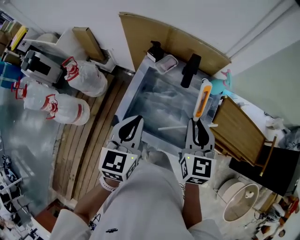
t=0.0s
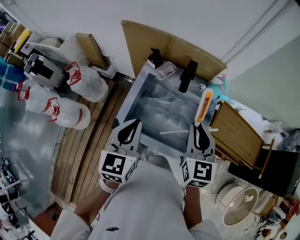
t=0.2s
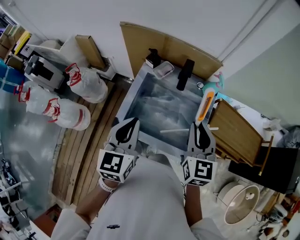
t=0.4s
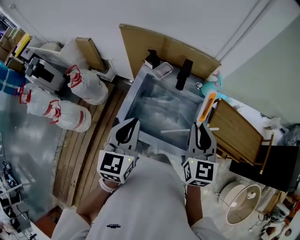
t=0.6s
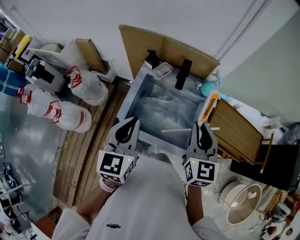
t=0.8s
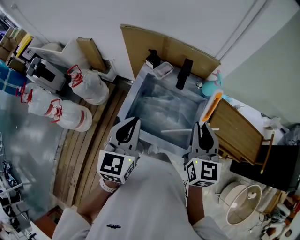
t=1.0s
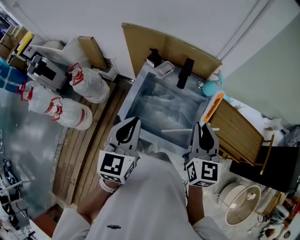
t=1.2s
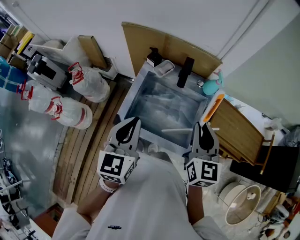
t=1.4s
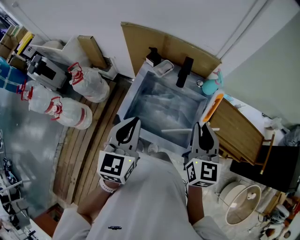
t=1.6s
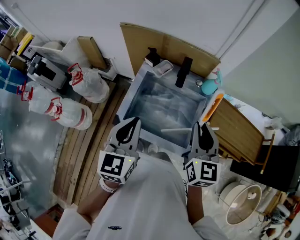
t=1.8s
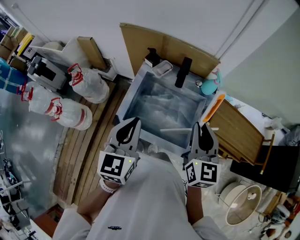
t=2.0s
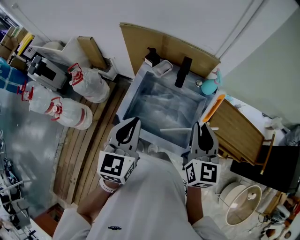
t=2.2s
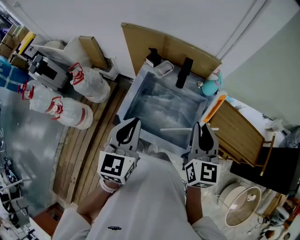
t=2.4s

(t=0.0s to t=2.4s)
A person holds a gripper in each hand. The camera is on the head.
t=0.0s - t=1.2s: Both grippers move upward, about 5 cm.
t=1.2s - t=2.4s: Both grippers stay about where they are.

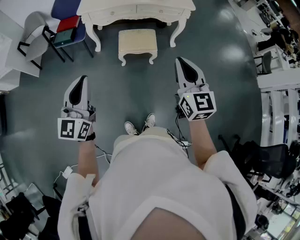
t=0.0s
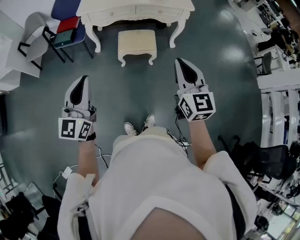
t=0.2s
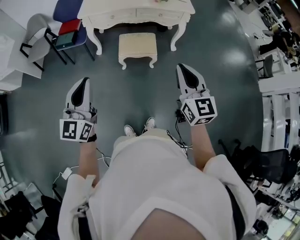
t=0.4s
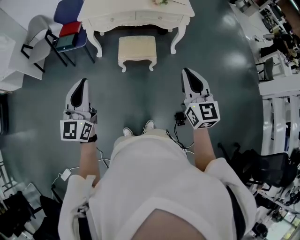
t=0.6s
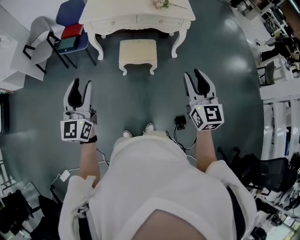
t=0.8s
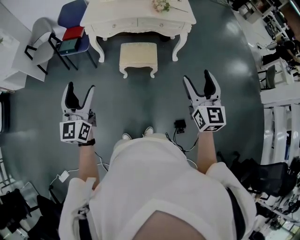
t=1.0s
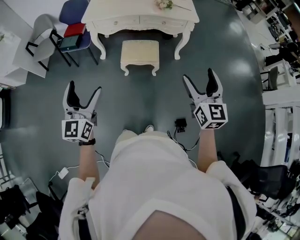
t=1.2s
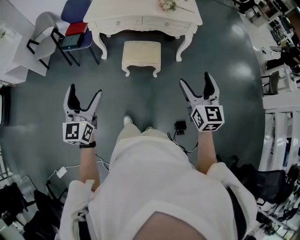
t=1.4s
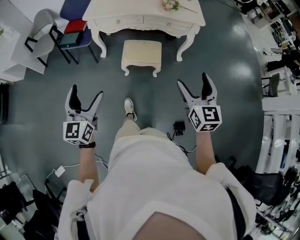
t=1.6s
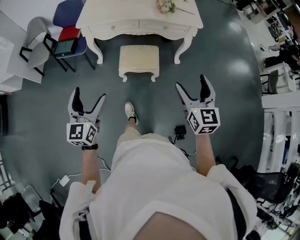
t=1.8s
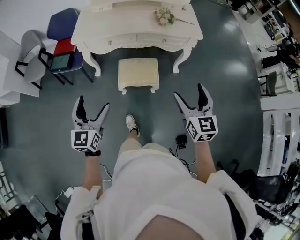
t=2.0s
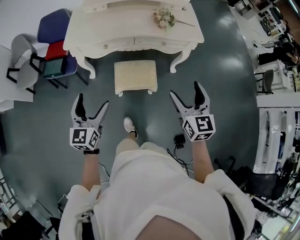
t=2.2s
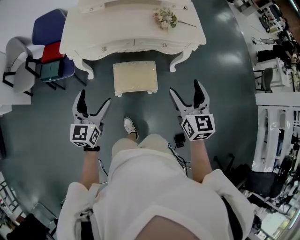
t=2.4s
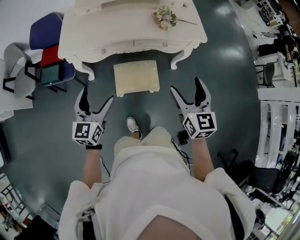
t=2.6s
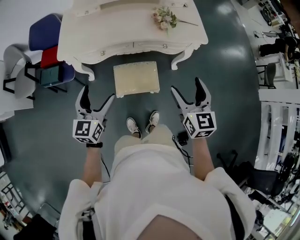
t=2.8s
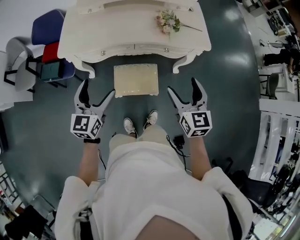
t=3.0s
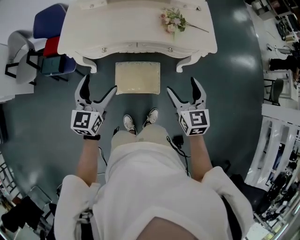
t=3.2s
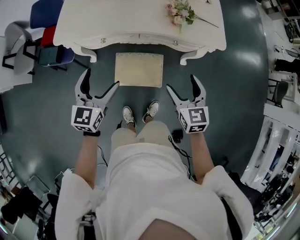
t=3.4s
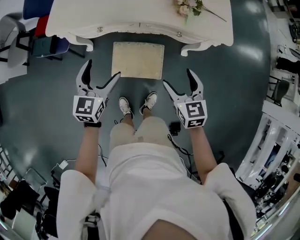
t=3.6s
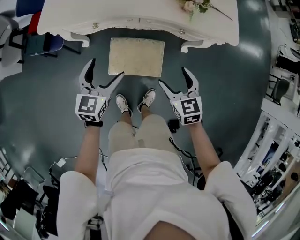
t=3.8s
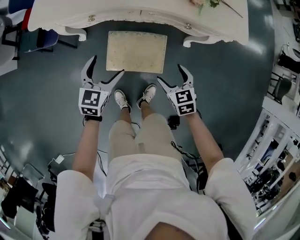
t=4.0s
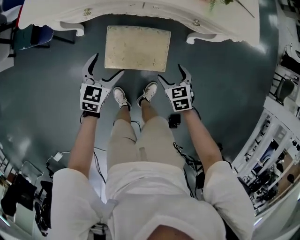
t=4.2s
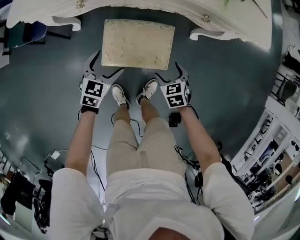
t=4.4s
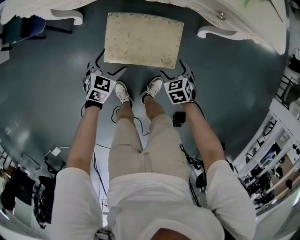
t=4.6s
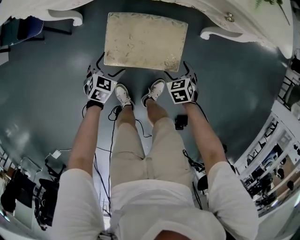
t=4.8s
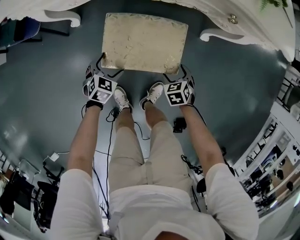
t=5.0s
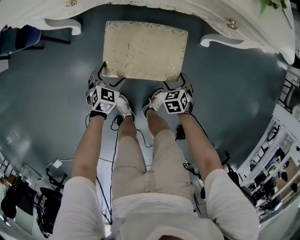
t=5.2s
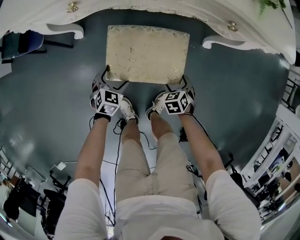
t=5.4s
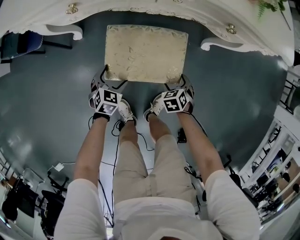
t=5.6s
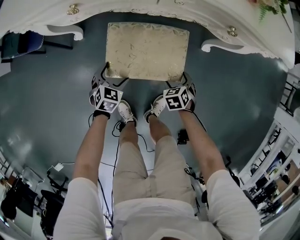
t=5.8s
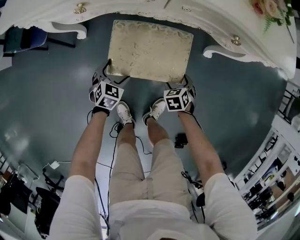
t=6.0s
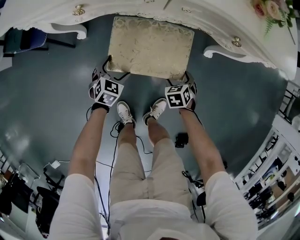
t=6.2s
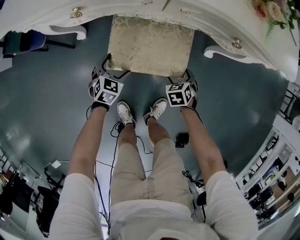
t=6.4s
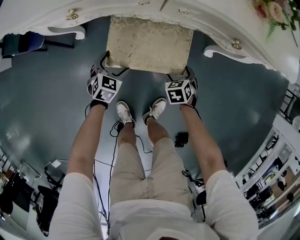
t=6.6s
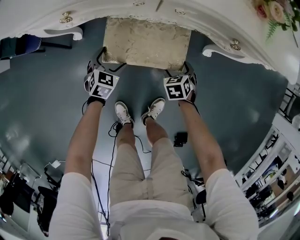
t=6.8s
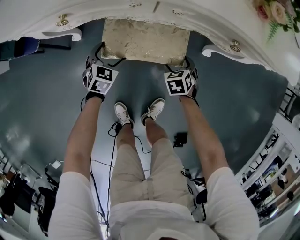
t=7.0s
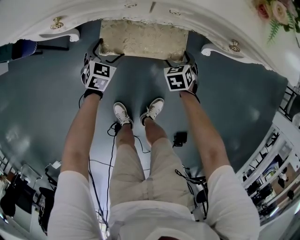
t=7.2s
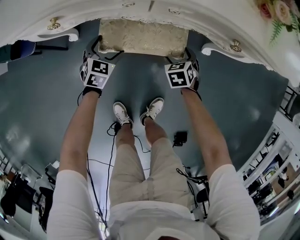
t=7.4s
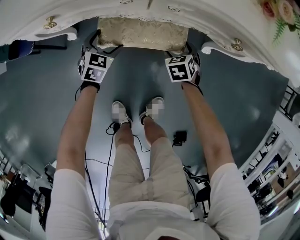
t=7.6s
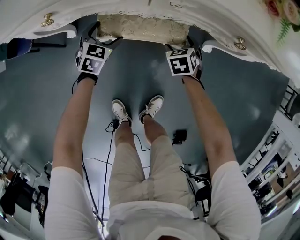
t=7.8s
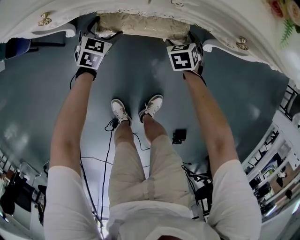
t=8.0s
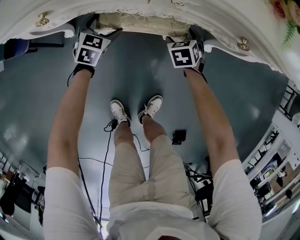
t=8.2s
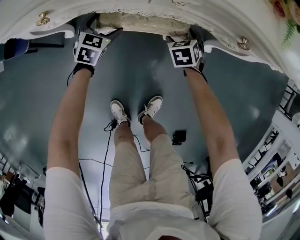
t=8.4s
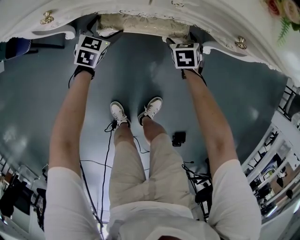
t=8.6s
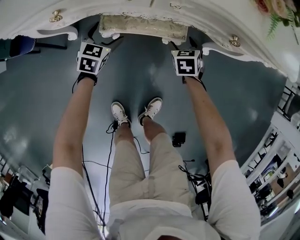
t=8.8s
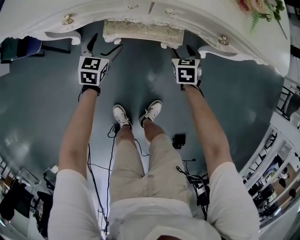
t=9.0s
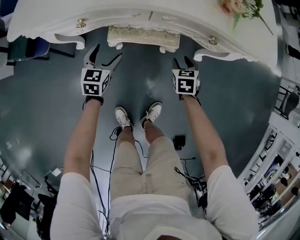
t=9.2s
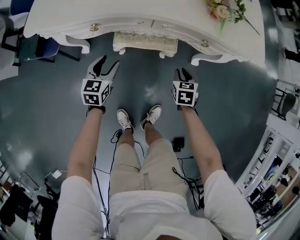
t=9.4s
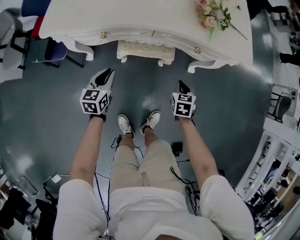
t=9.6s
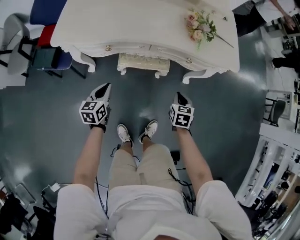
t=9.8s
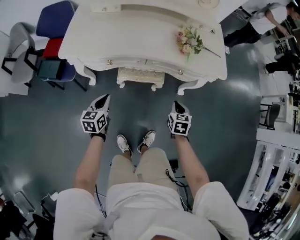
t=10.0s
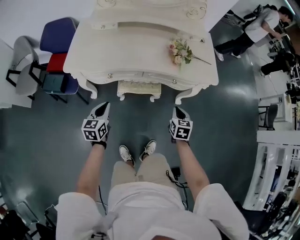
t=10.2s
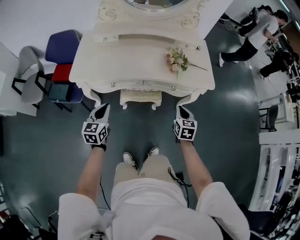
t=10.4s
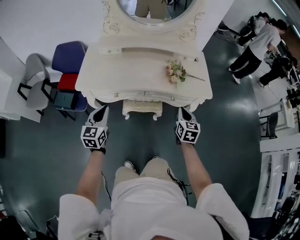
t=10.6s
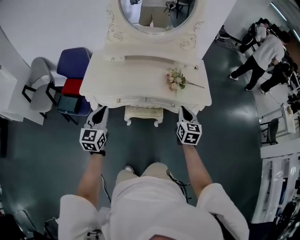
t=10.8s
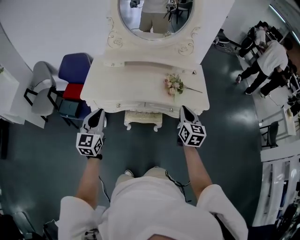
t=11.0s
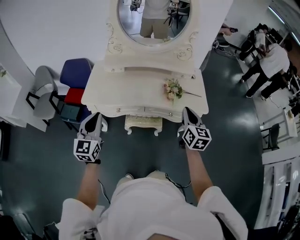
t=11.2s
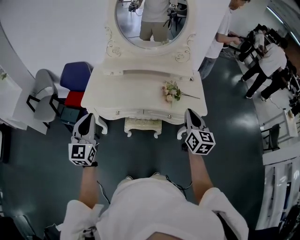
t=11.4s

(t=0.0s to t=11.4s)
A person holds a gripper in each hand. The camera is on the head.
t=0.0s - t=1.4s: The left gripper moves some 5 cm, and opens, while the right gripper heads to the right and forward, covering roughly 15 cm, and opens its fingers.
t=1.4s - t=2.8s: Both grippers move forward, roughly 40 cm. The left gripper changes its angle by approximately 20 degrees.
t=2.8s - t=4.2s: The grippers both shift downward by about 40 cm. The right gripper angles its fingers downward, by roughly 40 degrees, while the left gripper changes its angle by roughly 30 degrees.
t=4.2s - t=5.6s: The two grippers go about 25 cm downward. The left gripper changes its angle by some 20 degrees.
t=5.6s - t=7.2s: Both grippers move forward, approximately 15 cm.
t=7.2s - t=8.6s: The grippers both shift forward by about 10 cm.
t=8.6s - t=10.0s: The two grippers go about 40 cm upward and backward. The left gripper swivels roughly 30 degrees, and closes its fingers. Meanwhile the right gripper rotates approximately 20 degrees, and closes.
t=10.0s - t=11.4s: The grippers both shift upward by some 40 cm. The right gripper angles its fingers upward, by some 40 degrees, while the left gripper tilts its fingers about 30 degrees upward.

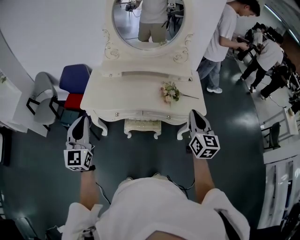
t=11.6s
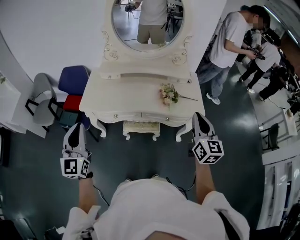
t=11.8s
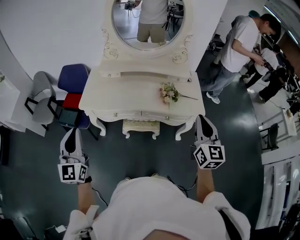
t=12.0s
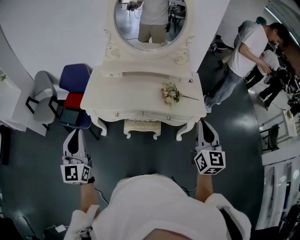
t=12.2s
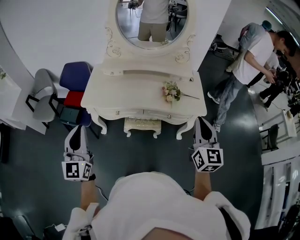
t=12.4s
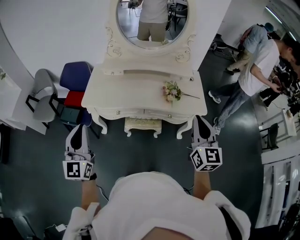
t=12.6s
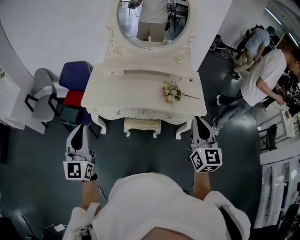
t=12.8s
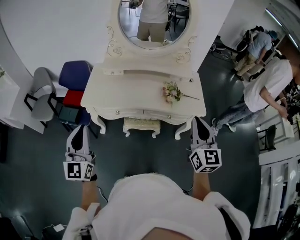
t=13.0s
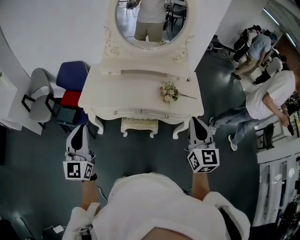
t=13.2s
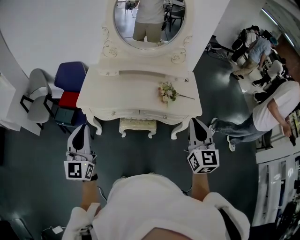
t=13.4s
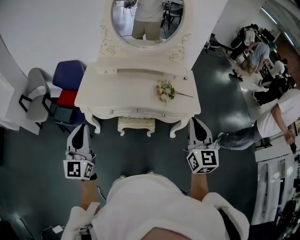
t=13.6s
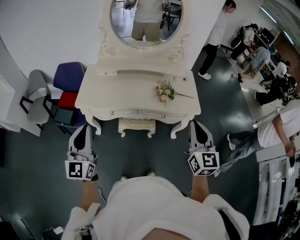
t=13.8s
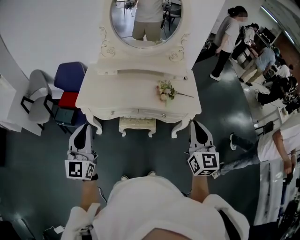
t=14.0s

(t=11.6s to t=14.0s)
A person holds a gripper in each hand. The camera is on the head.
t=11.6s - t=12.8s: The left gripper moves roughly 5 cm, while the right gripper heads backward, covering some 5 cm.
t=12.8s - t=14.0s: The grippers stay close to where they were, moving slightly.

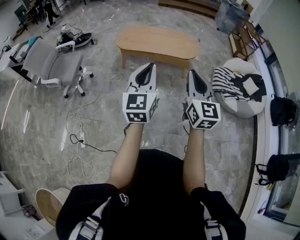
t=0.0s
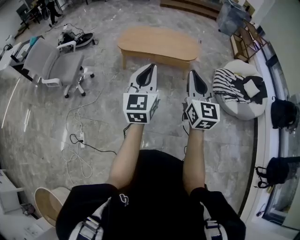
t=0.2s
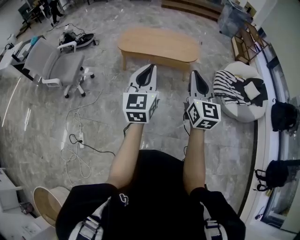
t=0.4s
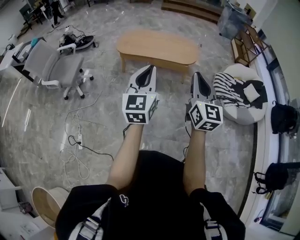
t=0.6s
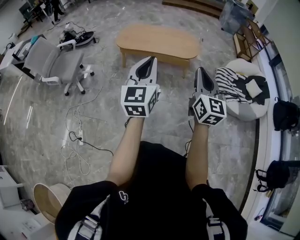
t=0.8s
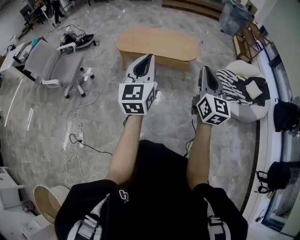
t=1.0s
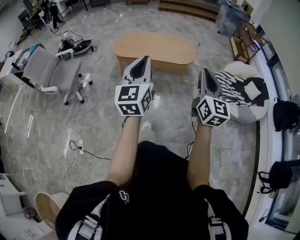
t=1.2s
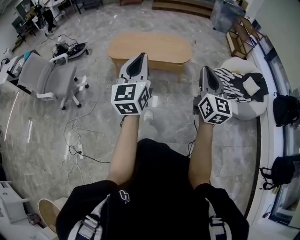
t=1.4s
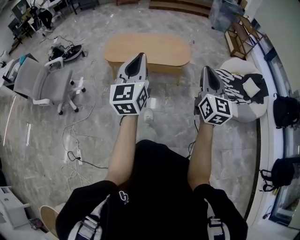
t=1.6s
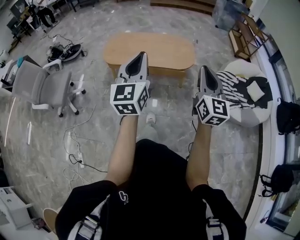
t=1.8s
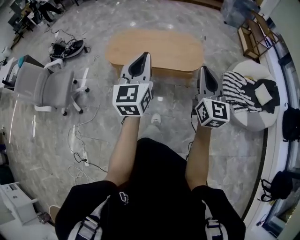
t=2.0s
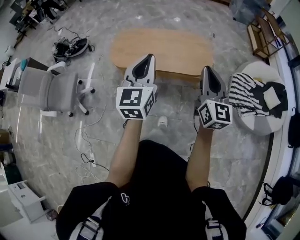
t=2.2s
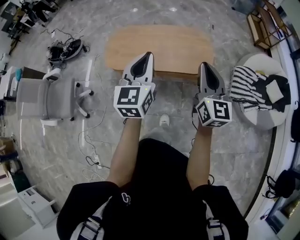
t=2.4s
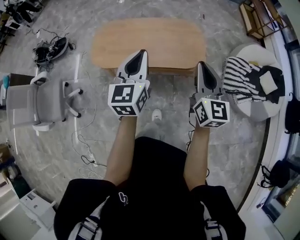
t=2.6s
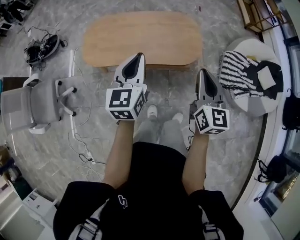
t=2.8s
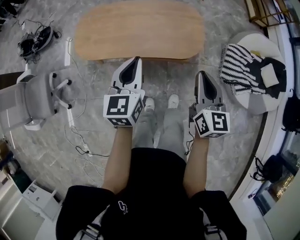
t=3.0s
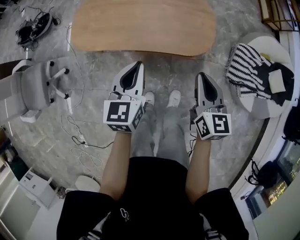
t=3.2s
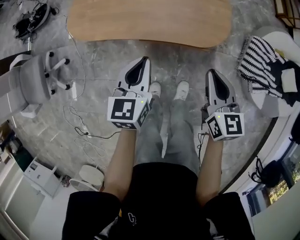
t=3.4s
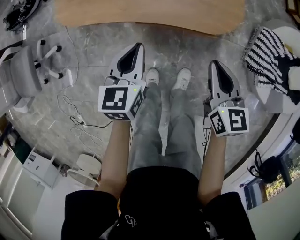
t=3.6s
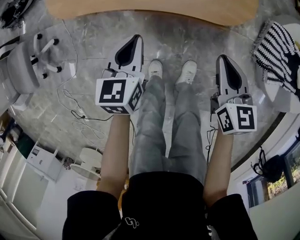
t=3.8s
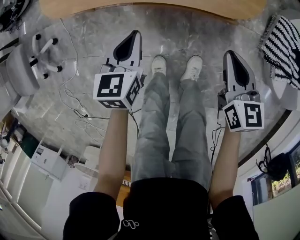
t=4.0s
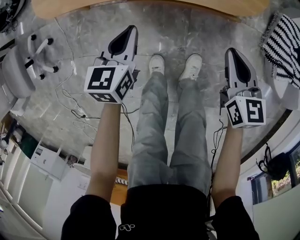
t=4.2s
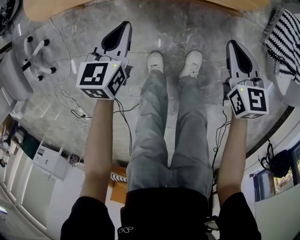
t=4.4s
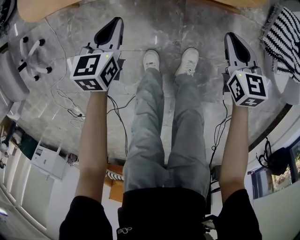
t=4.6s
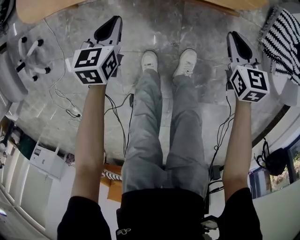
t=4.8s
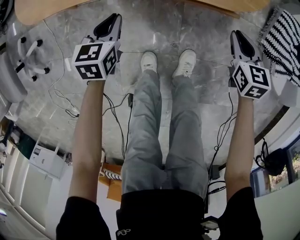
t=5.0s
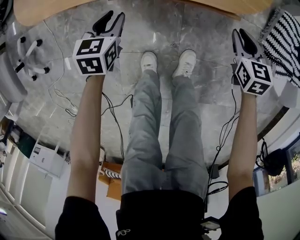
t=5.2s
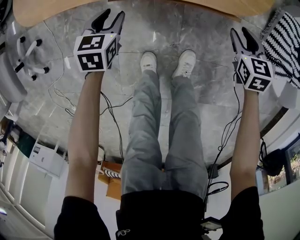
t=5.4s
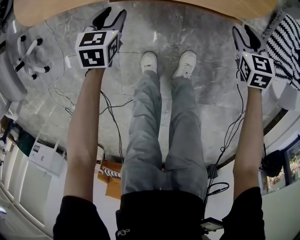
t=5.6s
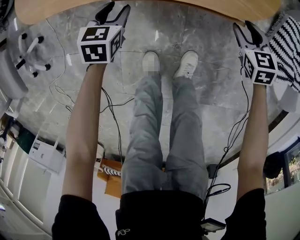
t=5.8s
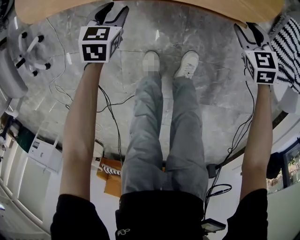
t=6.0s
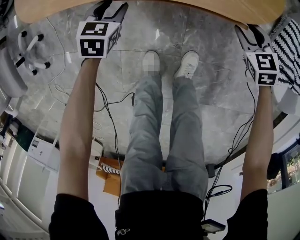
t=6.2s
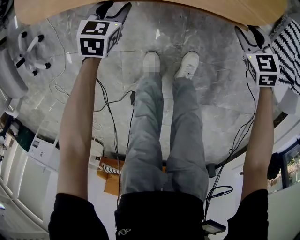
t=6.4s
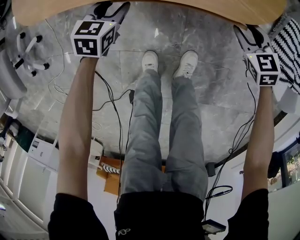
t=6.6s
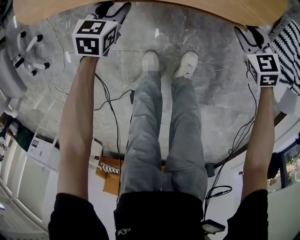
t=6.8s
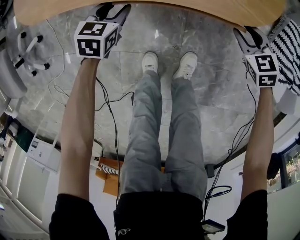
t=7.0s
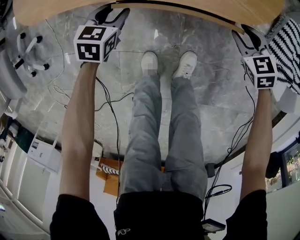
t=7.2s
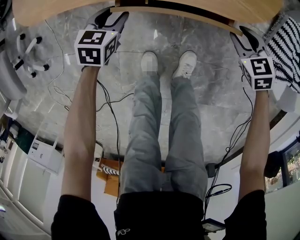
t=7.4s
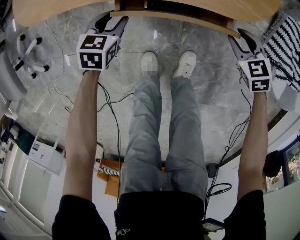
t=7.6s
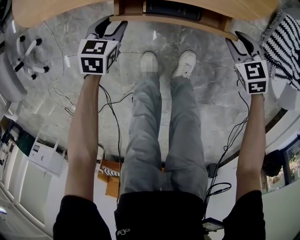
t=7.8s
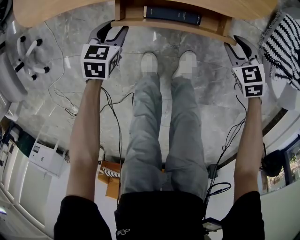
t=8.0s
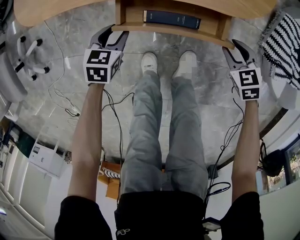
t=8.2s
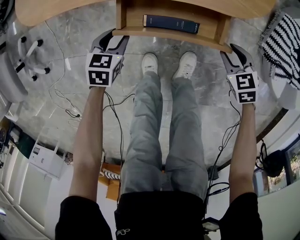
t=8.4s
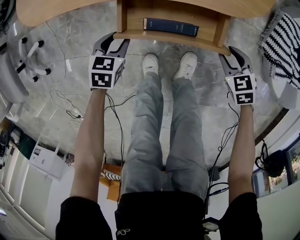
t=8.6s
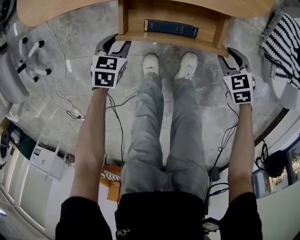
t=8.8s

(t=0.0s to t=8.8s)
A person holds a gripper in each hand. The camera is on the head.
t=0.0s - t=1.4s: The right gripper travels to the right and forward by roughly 20 cm, while the left gripper is displaced forward and to the right by approximately 10 cm.
t=1.4s - t=3.0s: Both grippers are carried forward, roughly 50 cm. The grippers both shift downward by about 25 cm. The left gripper turns by about 30 degrees. Meanwhile the right gripper swivels roughly 20 degrees.
t=3.0s - t=4.4s: The grippers both shift downward by approximately 40 cm. The left gripper turns by some 20 degrees. Meanwhile the right gripper rotates about 30 degrees.
t=4.4s - t=5.8s: The right gripper is displaced downward, forward and to the right by about 15 cm, changes its angle by approximately 20 degrees, and opens up. The left gripper heads downward and forward, covering about 15 cm, and opens up.
t=5.8s - t=7.4s: The grippers move only a little.
t=7.4s - t=8.8s: The two grippers go some 10 cm backward.
